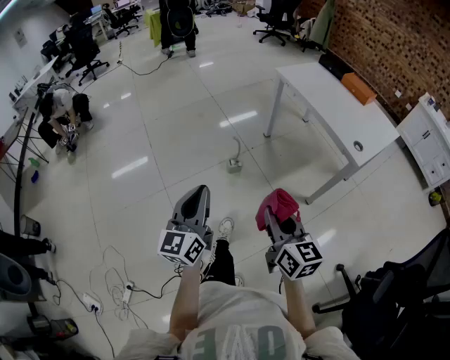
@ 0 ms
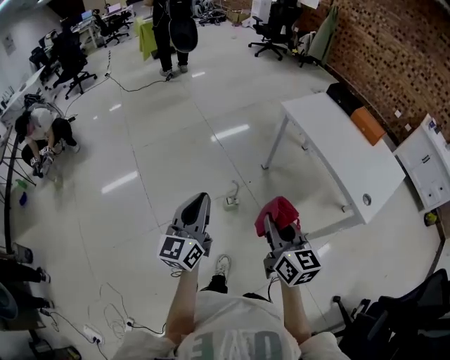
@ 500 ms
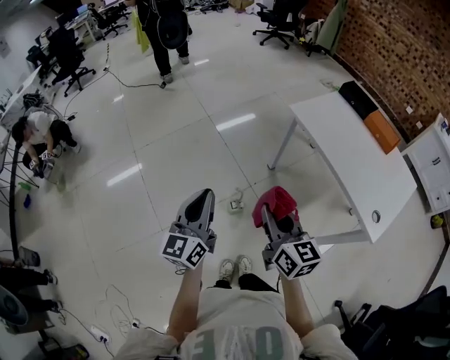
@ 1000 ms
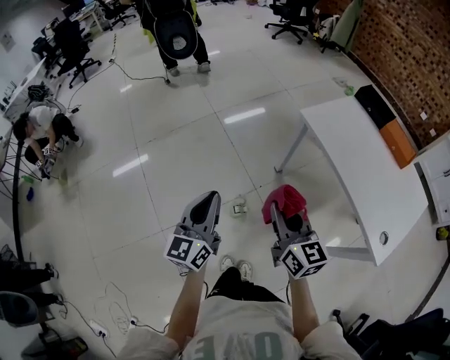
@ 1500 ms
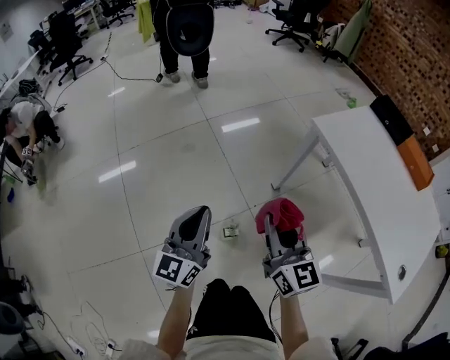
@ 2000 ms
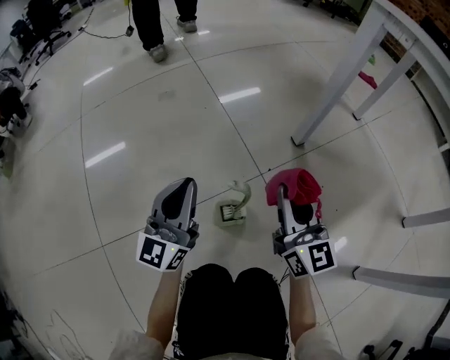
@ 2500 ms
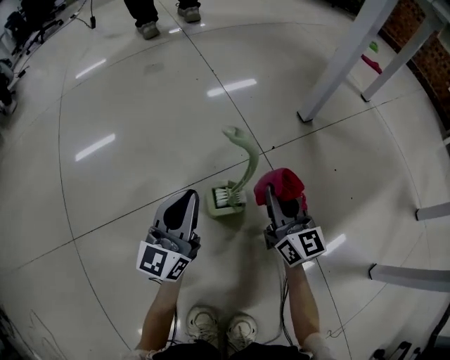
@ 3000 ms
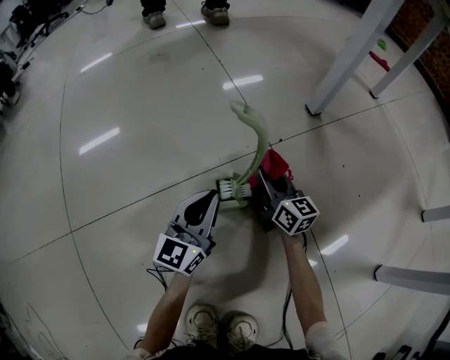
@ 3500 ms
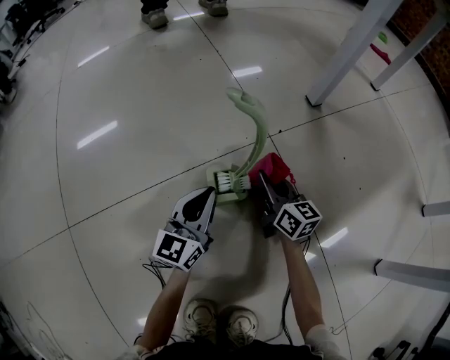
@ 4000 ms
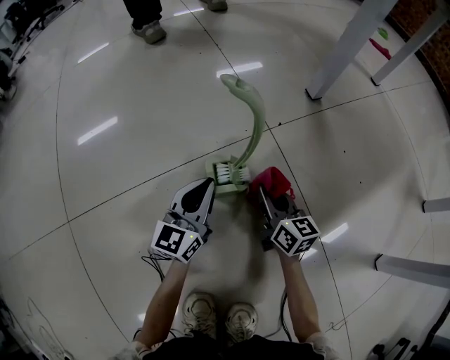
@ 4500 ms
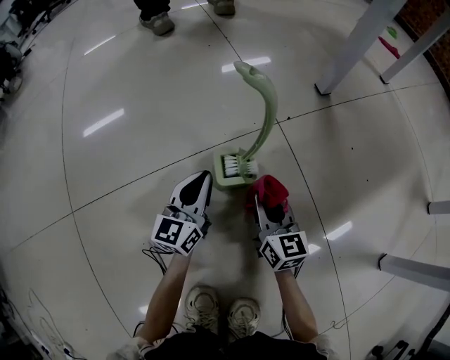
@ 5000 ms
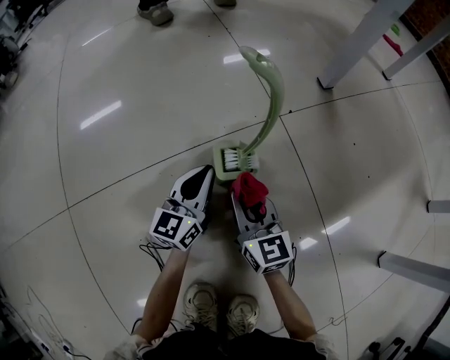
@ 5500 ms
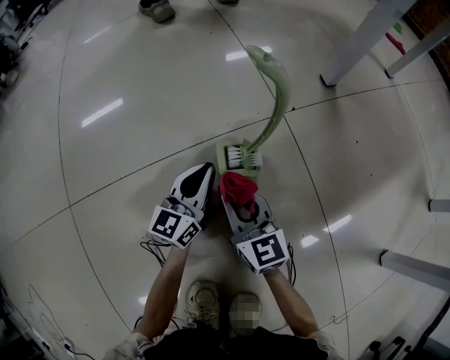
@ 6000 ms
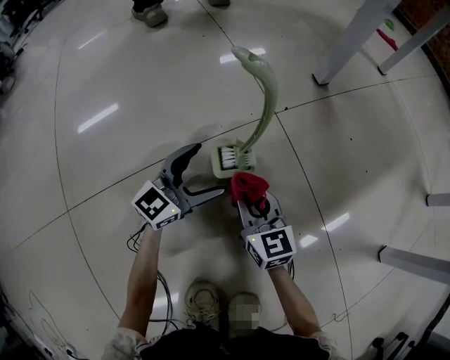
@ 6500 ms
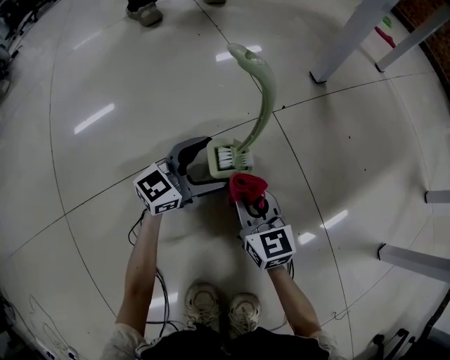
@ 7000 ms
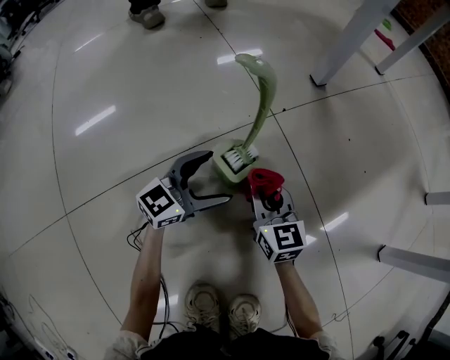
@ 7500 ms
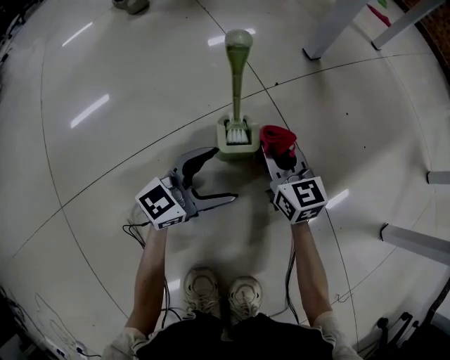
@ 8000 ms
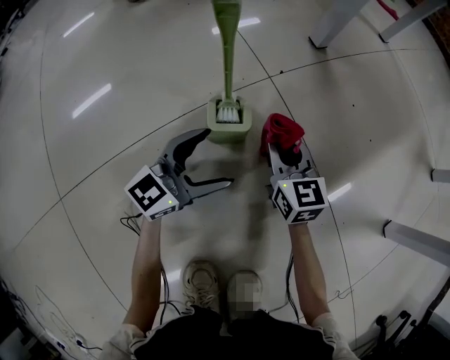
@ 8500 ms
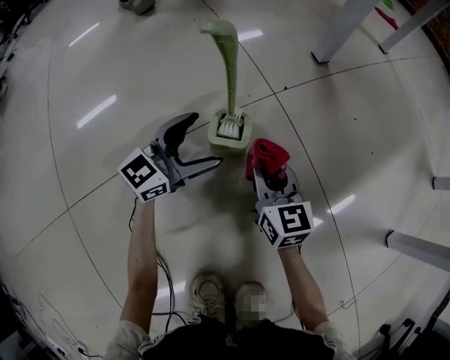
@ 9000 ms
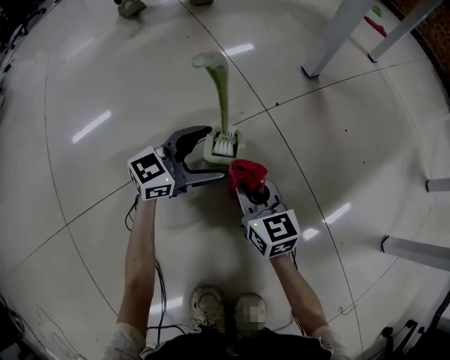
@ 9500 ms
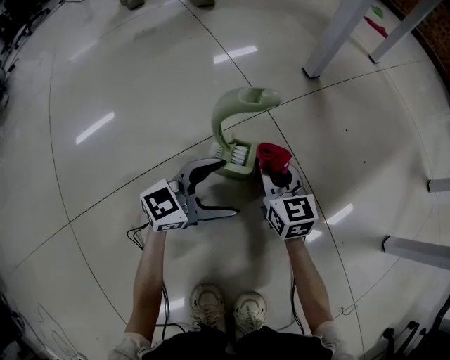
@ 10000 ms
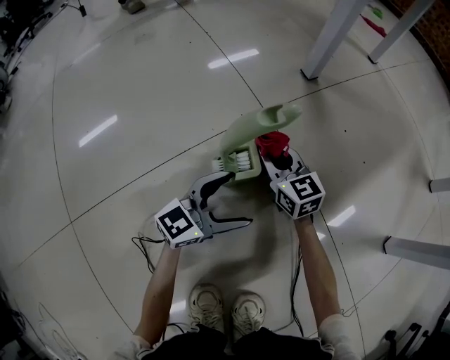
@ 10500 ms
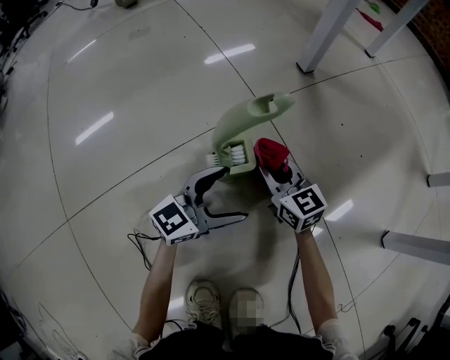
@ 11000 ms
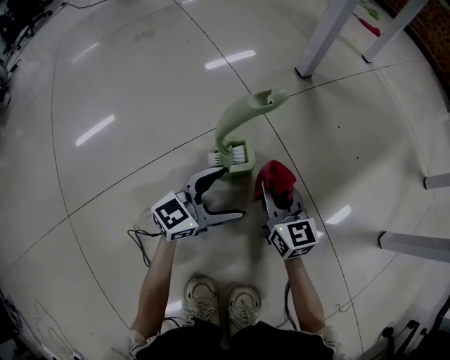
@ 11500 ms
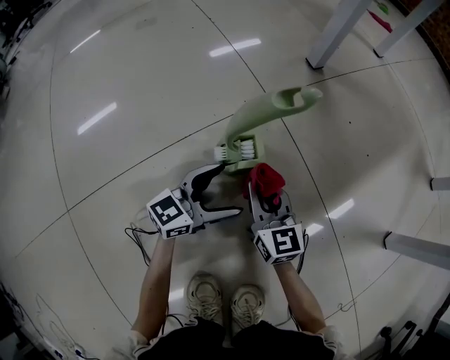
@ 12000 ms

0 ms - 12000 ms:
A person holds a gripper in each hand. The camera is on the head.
0 ms - 2000 ms: The pair of grippers is taken forward, about 60 cm.
2000 ms - 4000 ms: The grippers both shift downward by approximately 70 cm. The right gripper rotates approximately 20 degrees.
4000 ms - 6000 ms: The right gripper travels to the left and backward by approximately 15 cm, and turns by approximately 20 degrees.
6000 ms - 8000 ms: The left gripper ends up some 10 cm from where it was, swivels approximately 40 degrees, and opens, while the right gripper moves some 15 cm.
8000 ms - 10000 ms: The left gripper reaches about 10 cm to the left, then returns.
10000 ms - 12000 ms: The right gripper moves backward, approximately 10 cm.

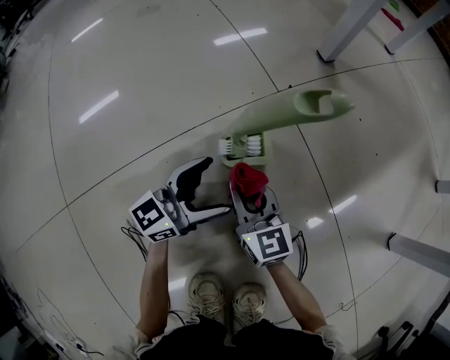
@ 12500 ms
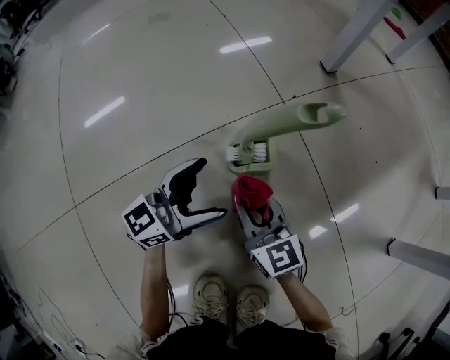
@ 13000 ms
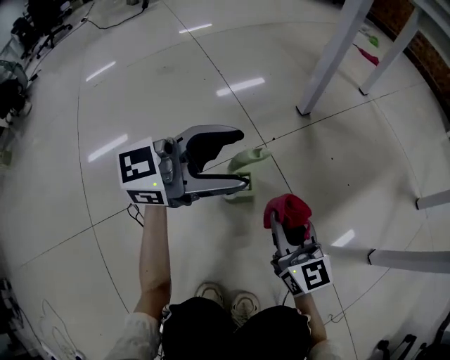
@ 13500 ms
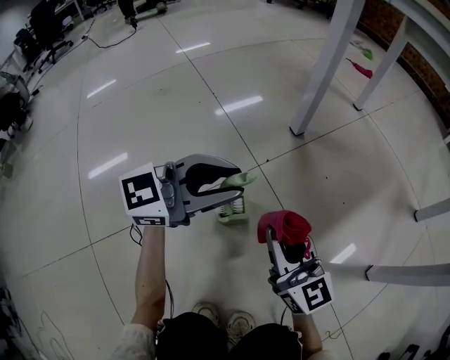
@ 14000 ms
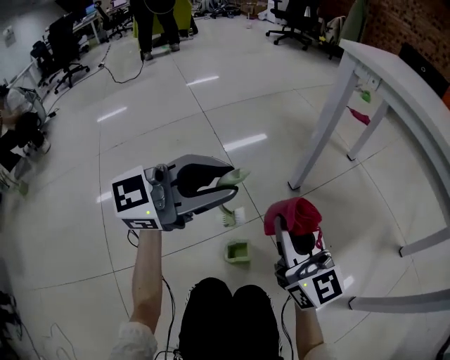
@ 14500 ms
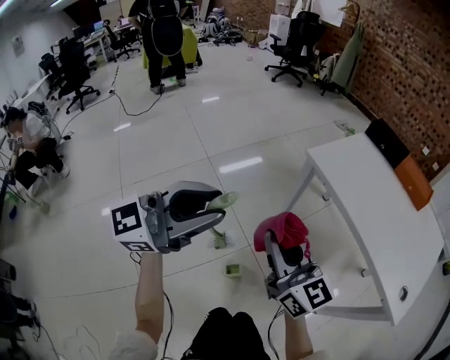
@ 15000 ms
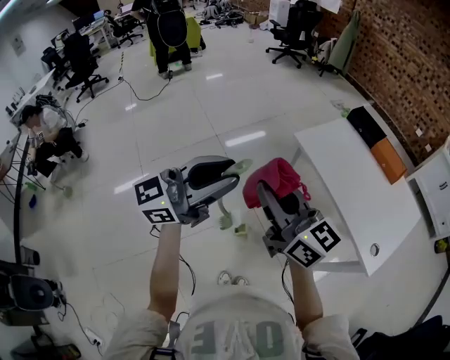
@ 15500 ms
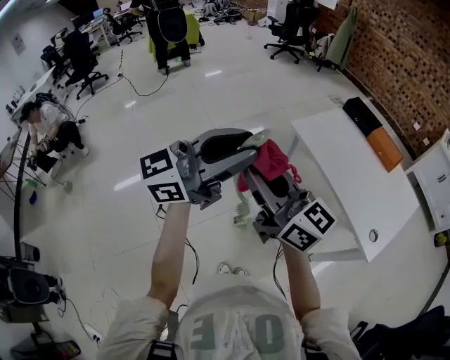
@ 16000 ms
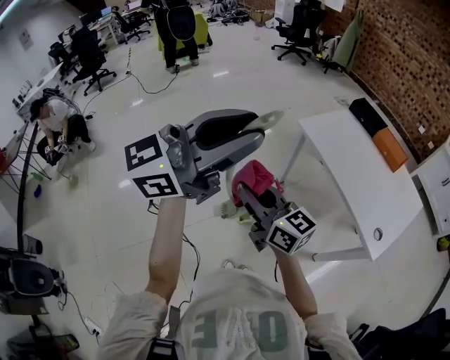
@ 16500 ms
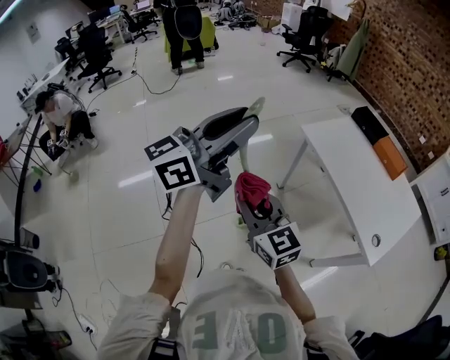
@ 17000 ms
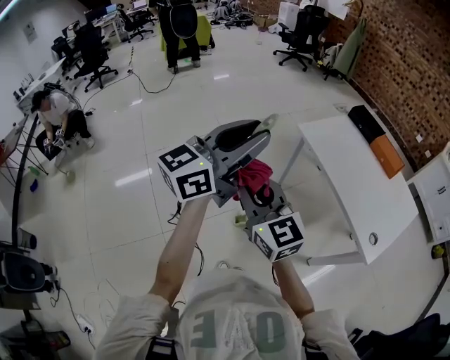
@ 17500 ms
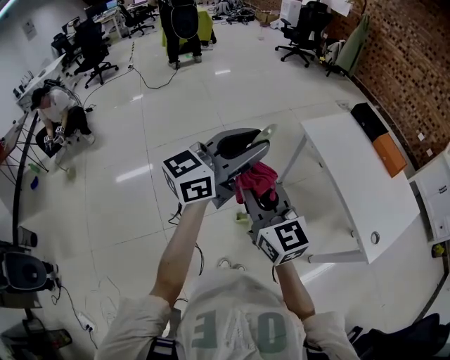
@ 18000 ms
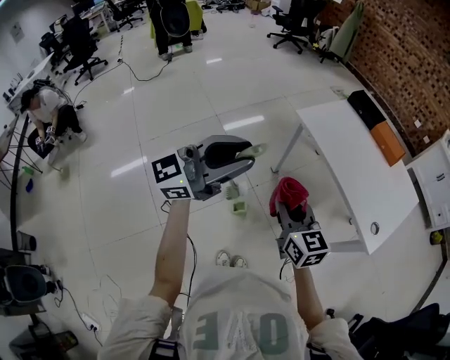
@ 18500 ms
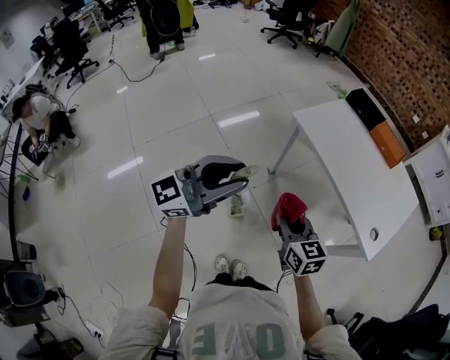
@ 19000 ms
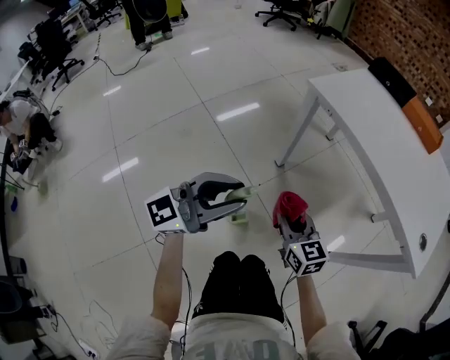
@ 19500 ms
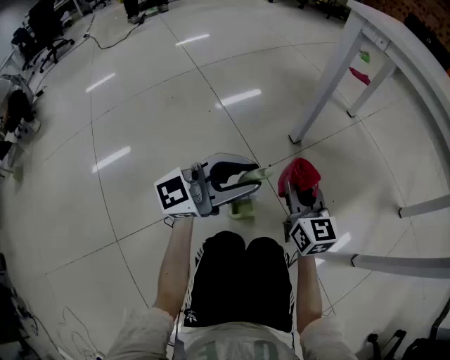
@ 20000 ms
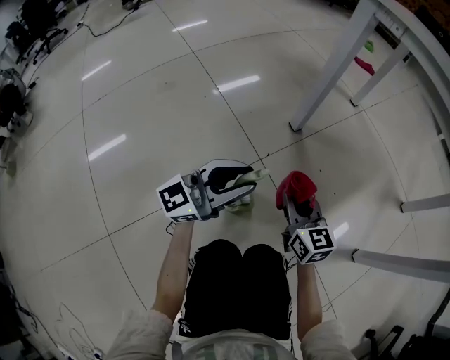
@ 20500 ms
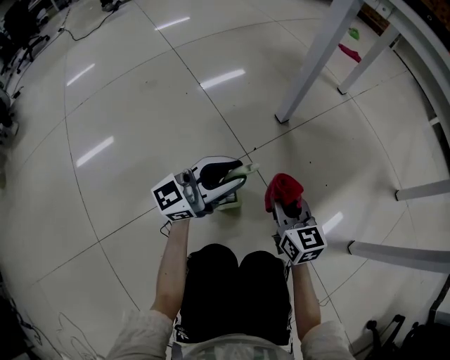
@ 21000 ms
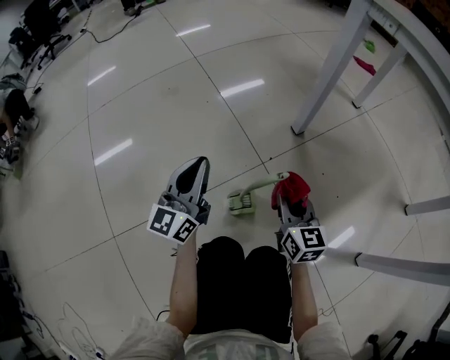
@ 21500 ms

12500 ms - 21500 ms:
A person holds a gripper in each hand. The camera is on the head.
12500 ms - 14500 ms: Both grippers travel together upward, roughly 50 cm. The left gripper turns by roughly 30 degrees, and closes its fingers. Meanwhile the right gripper rotates roughly 20 degrees.
14500 ms - 17000 ms: The two grippers go some 60 cm upward. The left gripper rotates about 30 degrees.
17000 ms - 19500 ms: The grippers both shift downward by roughly 40 cm. The right gripper turns by about 30 degrees; the left gripper turns by about 30 degrees.
19500 ms - 21500 ms: The two grippers go roughly 40 cm downward. The left gripper turns by some 50 degrees.

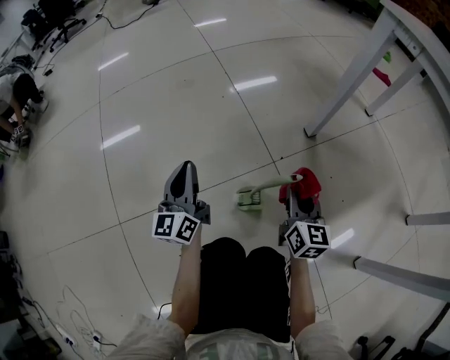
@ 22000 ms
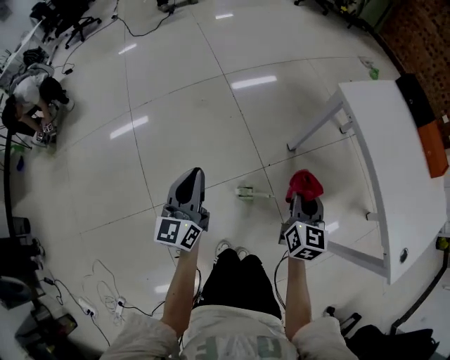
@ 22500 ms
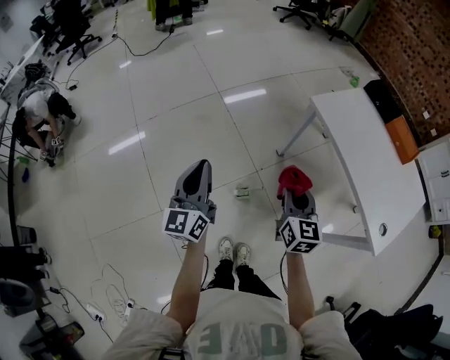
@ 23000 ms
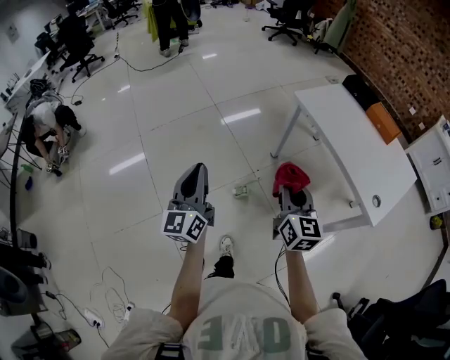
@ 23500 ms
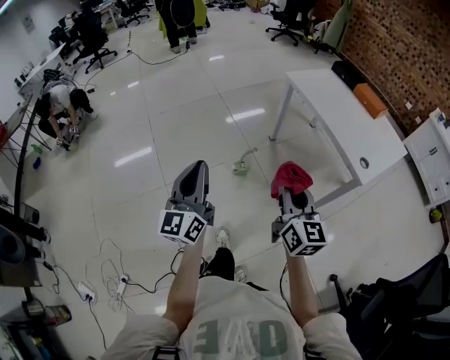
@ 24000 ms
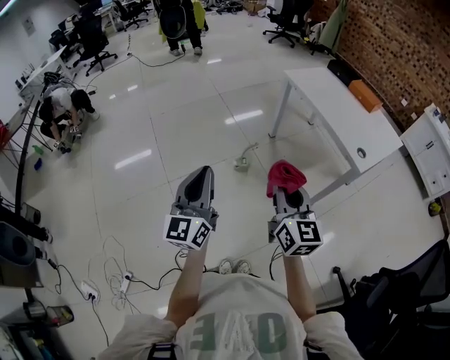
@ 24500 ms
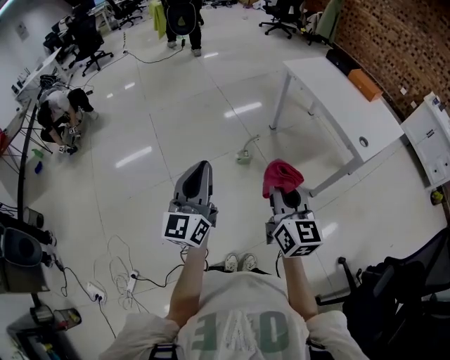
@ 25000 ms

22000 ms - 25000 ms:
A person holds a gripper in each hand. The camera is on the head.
22000 ms - 23500 ms: Both grippers move upward, roughly 60 cm.
23500 ms - 25000 ms: The two grippers go some 35 cm backward.

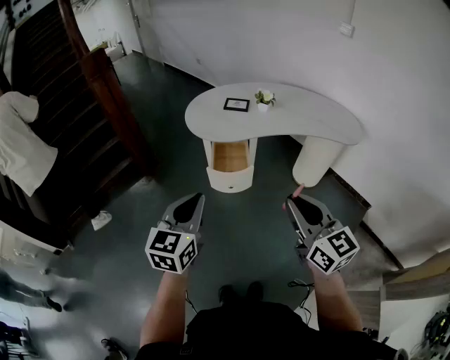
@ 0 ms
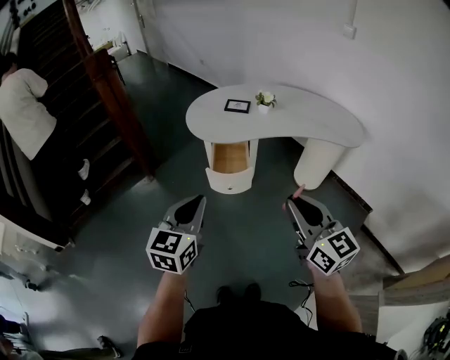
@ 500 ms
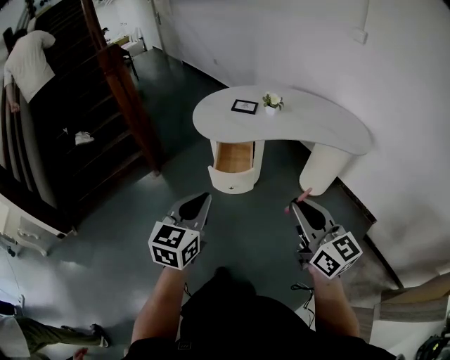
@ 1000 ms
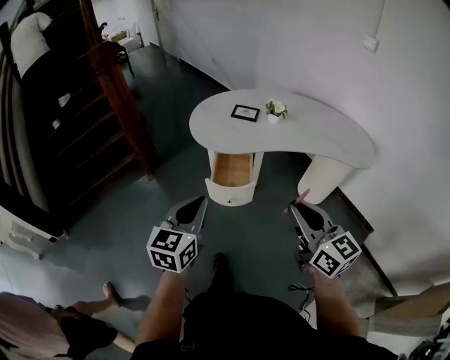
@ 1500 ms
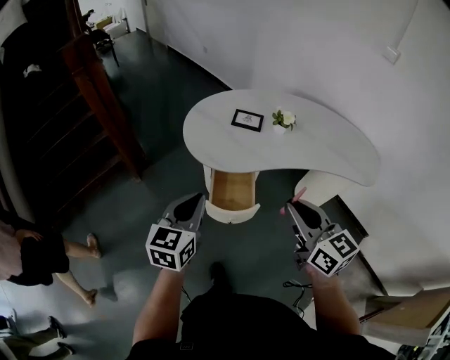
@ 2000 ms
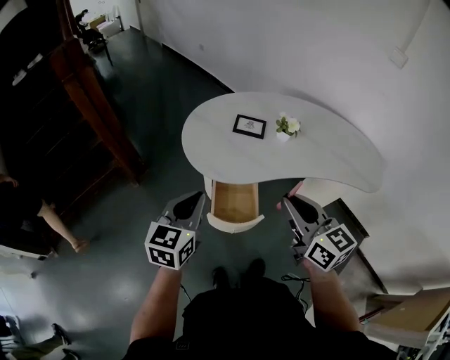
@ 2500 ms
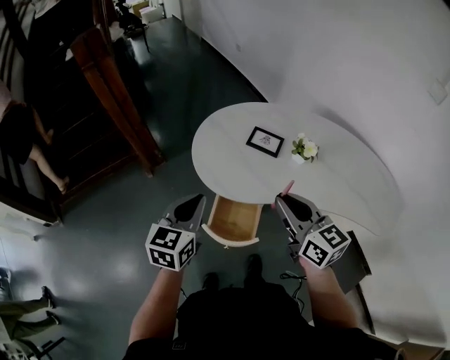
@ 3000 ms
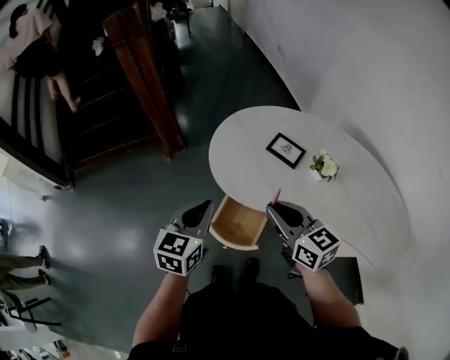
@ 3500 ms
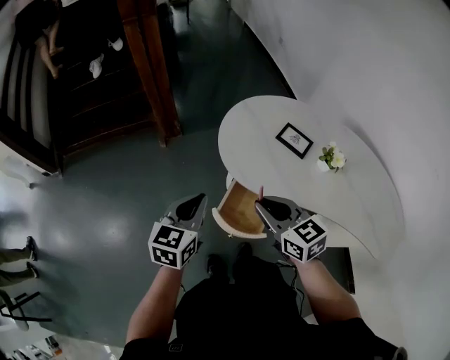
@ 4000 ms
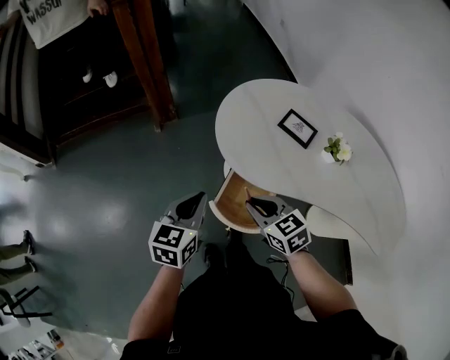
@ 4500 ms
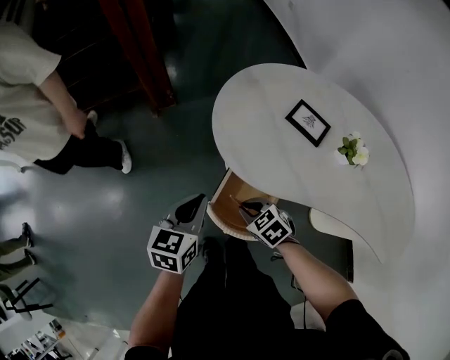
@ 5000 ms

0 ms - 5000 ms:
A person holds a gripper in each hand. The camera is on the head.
0 ms - 2500 ms: Both grippers travel together forward, about 30 cm.
2500 ms - 5000 ms: The left gripper travels downward by approximately 20 cm, and rotates some 30 degrees. Meanwhile the right gripper moves downward, roughly 40 cm, and points its fingers some 50 degrees further downward.
